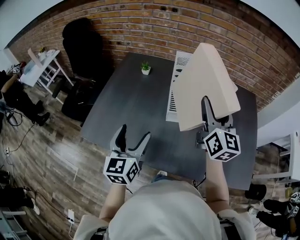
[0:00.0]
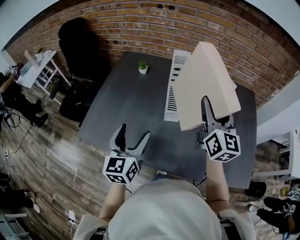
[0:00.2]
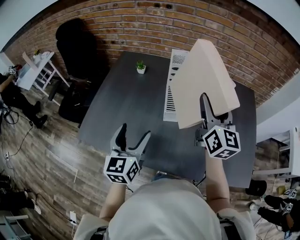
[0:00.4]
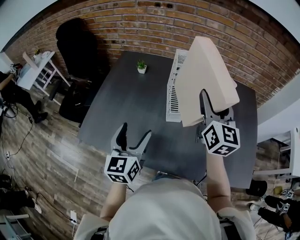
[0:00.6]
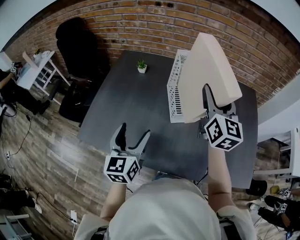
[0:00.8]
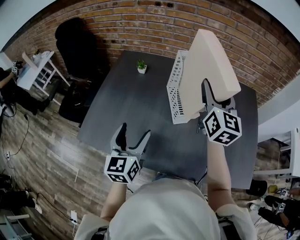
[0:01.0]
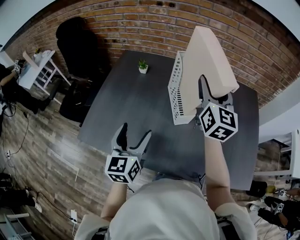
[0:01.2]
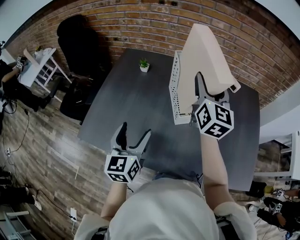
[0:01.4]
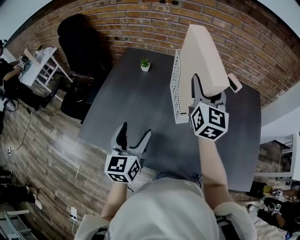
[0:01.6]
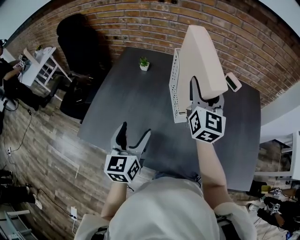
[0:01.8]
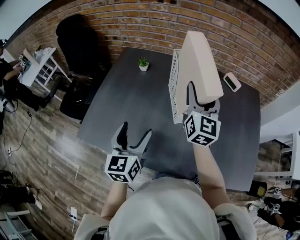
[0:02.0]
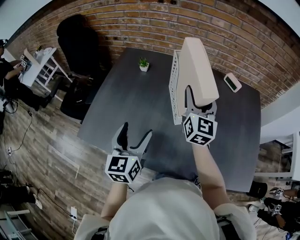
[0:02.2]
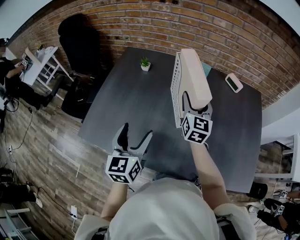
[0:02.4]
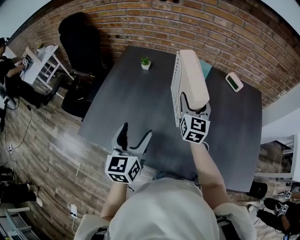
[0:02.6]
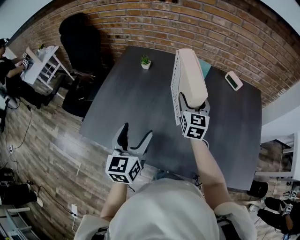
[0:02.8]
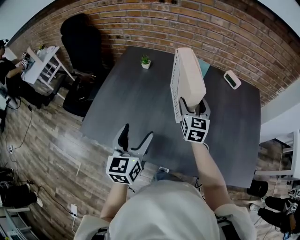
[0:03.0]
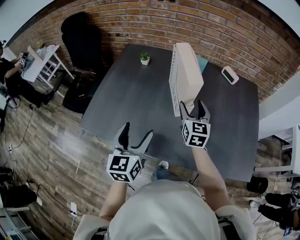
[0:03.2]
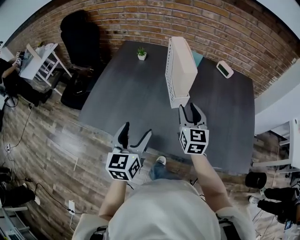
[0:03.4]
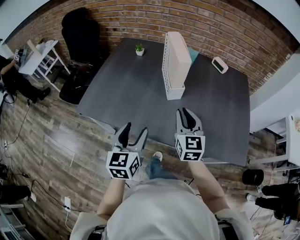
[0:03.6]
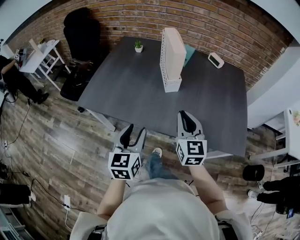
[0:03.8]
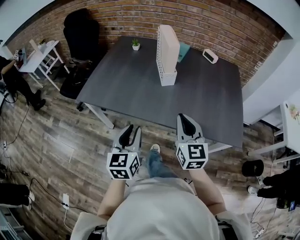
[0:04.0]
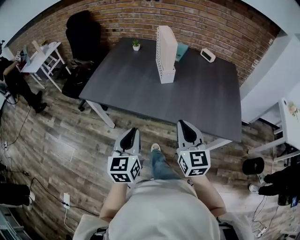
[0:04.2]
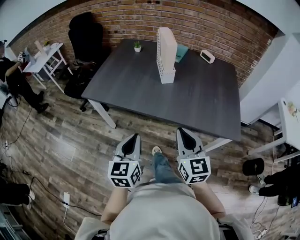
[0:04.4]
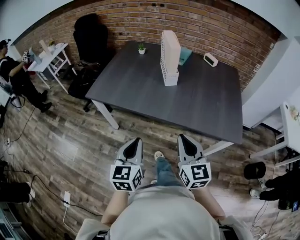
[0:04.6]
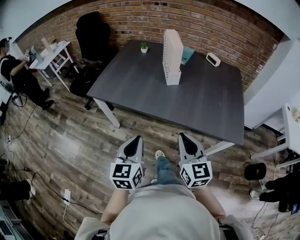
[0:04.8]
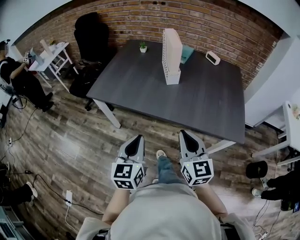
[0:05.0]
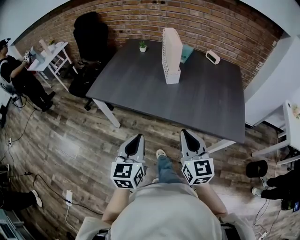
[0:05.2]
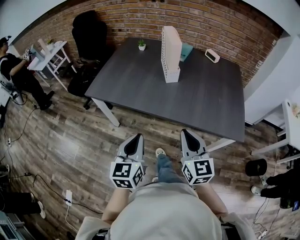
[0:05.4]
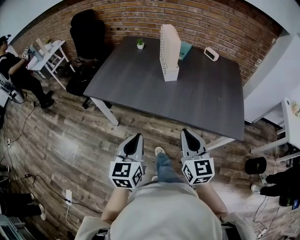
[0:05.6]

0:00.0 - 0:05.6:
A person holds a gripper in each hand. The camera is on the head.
0:00.0 - 0:01.4: The right gripper is displaced forward by roughly 10 cm.
0:01.4 - 0:02.8: The right gripper travels downward by some 15 cm.
0:02.8 - 0:04.2: The grippers both shift backward by about 40 cm. The left gripper closes up. The right gripper closes up.

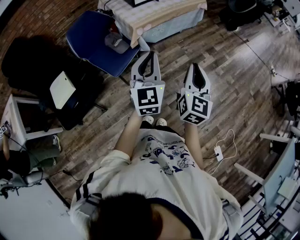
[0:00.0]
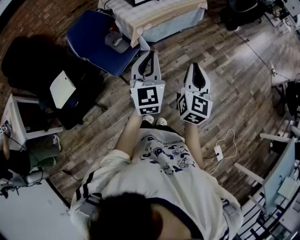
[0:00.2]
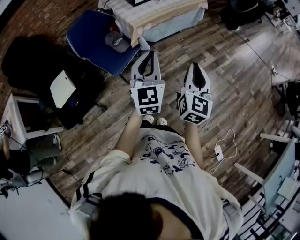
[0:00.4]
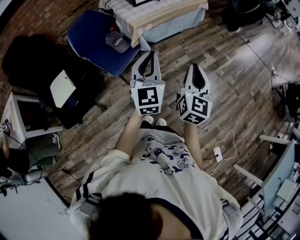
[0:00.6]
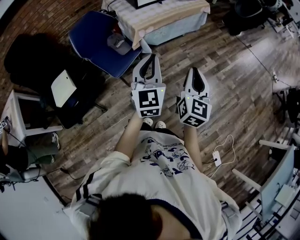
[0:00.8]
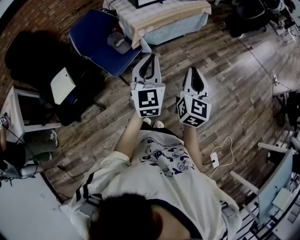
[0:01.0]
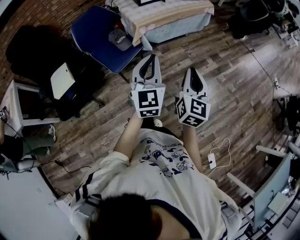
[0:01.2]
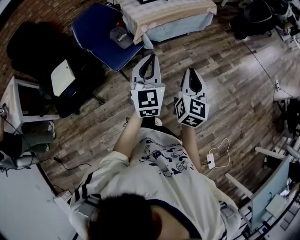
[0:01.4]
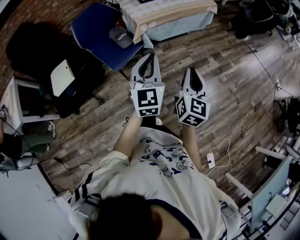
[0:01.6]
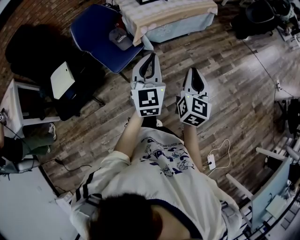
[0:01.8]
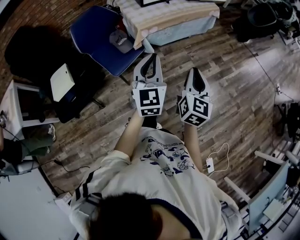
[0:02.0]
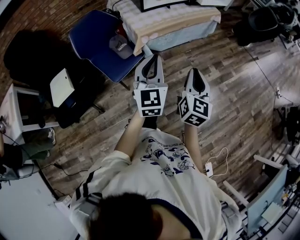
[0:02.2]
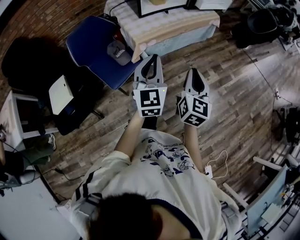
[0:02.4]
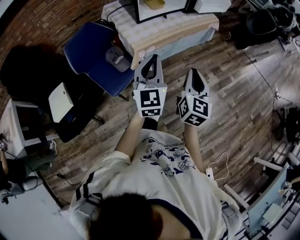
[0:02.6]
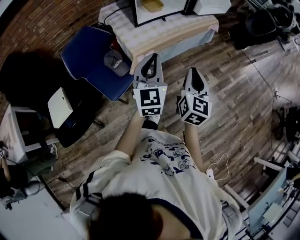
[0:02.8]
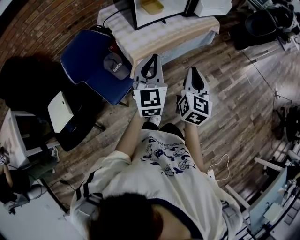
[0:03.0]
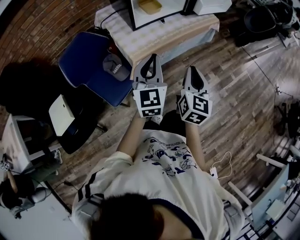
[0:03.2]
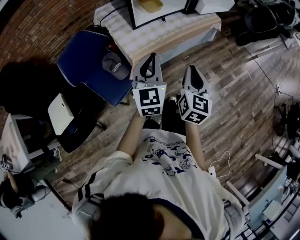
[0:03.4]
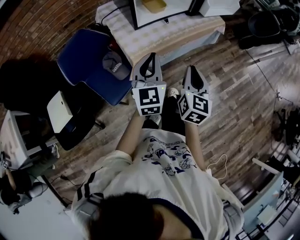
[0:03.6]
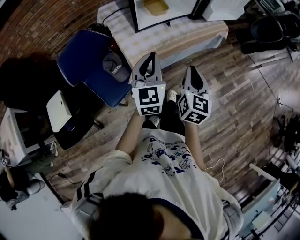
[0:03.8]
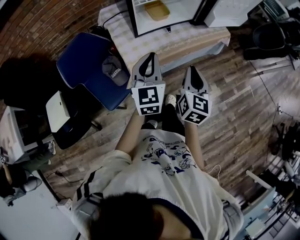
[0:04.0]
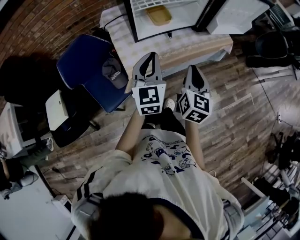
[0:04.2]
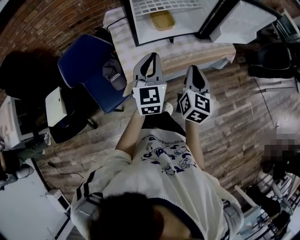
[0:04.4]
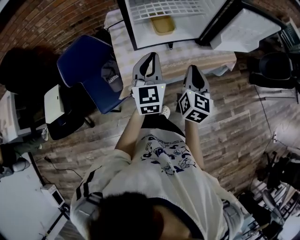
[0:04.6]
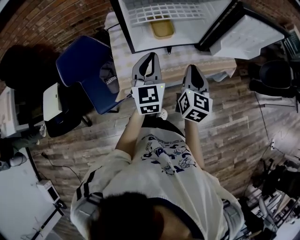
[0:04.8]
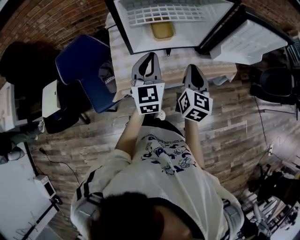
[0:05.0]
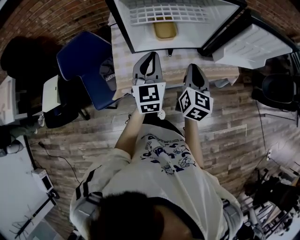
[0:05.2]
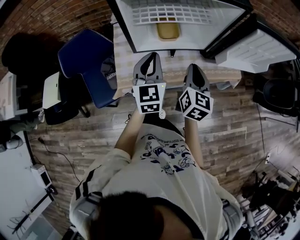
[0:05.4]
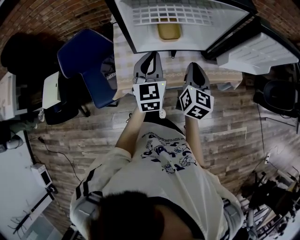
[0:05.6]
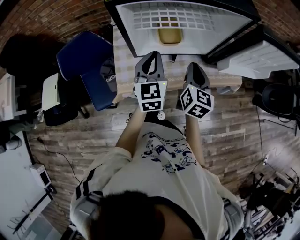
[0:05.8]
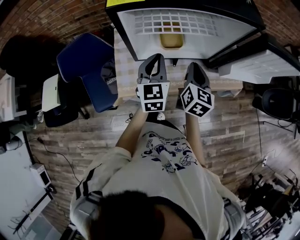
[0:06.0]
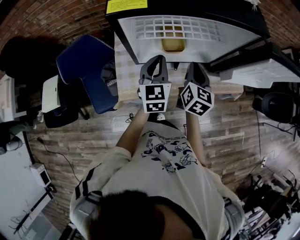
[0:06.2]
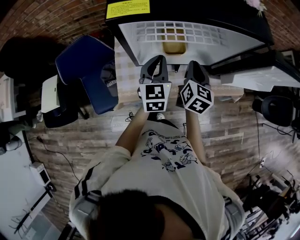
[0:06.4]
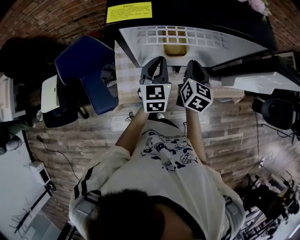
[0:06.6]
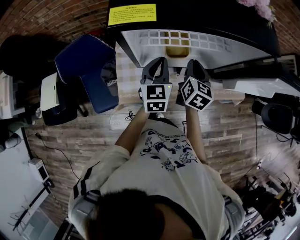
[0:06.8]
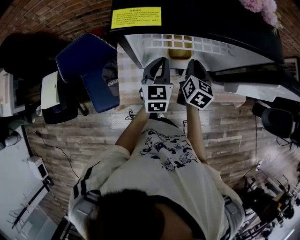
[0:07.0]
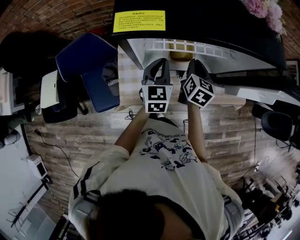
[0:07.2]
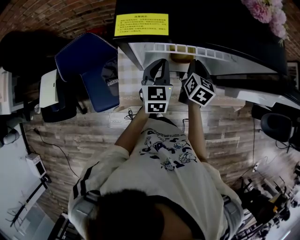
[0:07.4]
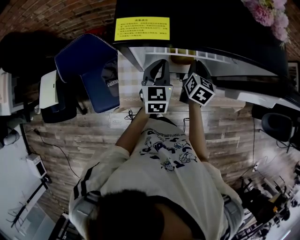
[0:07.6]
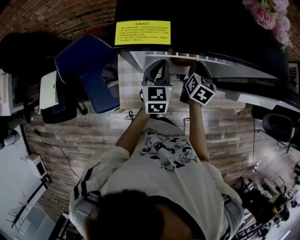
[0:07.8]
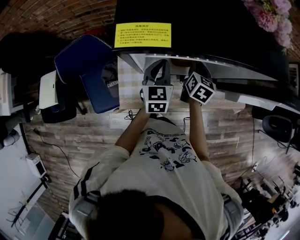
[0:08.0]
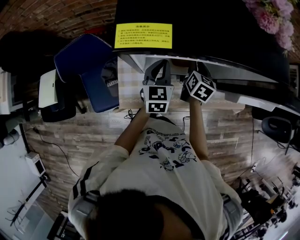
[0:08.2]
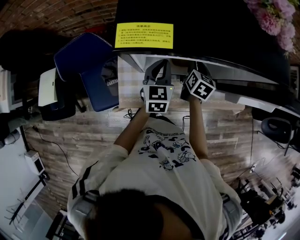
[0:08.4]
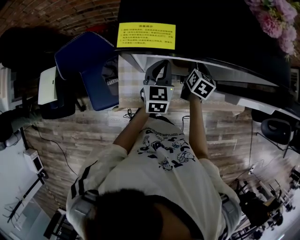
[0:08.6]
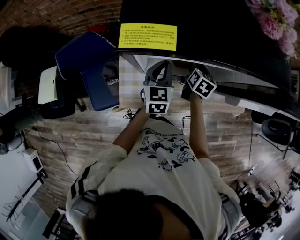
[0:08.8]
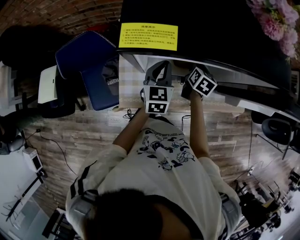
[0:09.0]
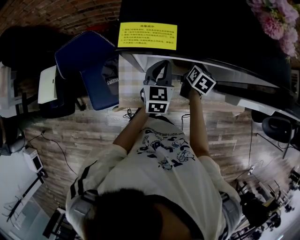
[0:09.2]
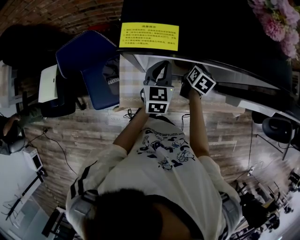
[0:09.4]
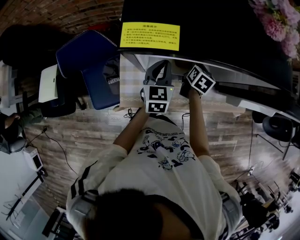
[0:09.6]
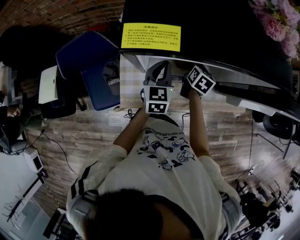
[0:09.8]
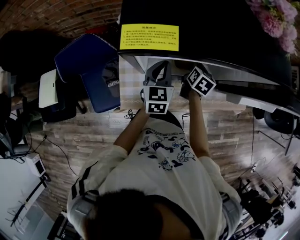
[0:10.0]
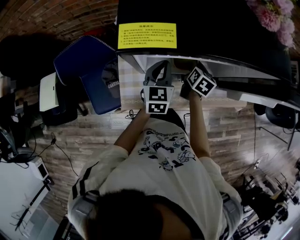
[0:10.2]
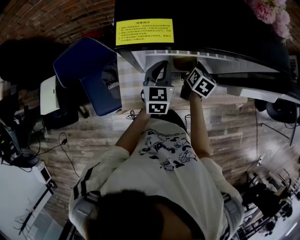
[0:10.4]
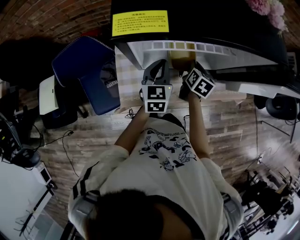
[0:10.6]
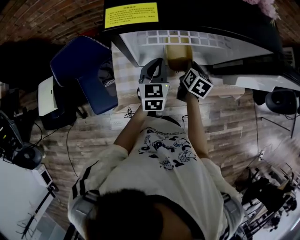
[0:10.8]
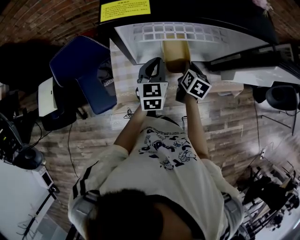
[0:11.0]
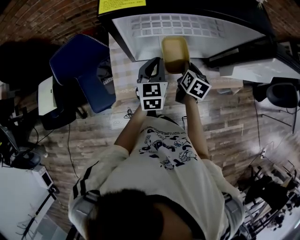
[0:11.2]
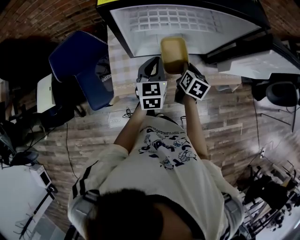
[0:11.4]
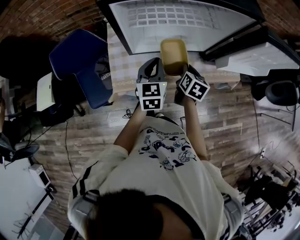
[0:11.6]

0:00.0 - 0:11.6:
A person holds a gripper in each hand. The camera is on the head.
0:00.0 - 0:01.4: The grippers make only small movements.
0:01.4 - 0:02.8: Both grippers move forward, about 25 cm.
0:02.8 - 0:04.4: The grippers both shift forward by about 25 cm.
0:04.4 - 0:05.8: The grippers both shift forward by approximately 15 cm.
0:05.8 - 0:07.2: Both grippers move forward and downward, about 15 cm.
0:07.2 - 0:08.8: The right gripper goes about 10 cm downward and forward.
0:08.8 - 0:10.2: The grippers stay close to where they were, moving slightly.
0:10.2 - 0:11.6: The left gripper moves backward and to the right, some 10 cm; the right gripper is displaced backward by some 15 cm.

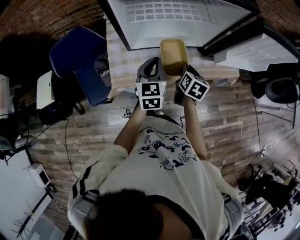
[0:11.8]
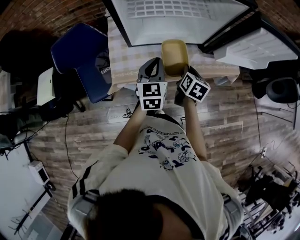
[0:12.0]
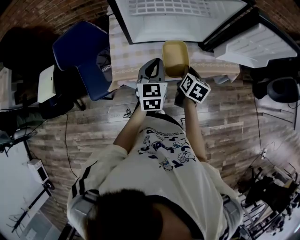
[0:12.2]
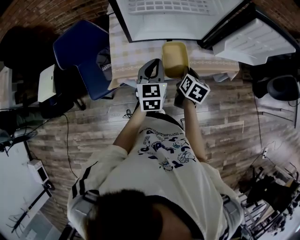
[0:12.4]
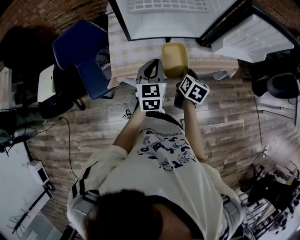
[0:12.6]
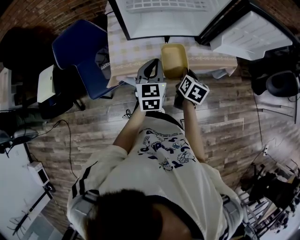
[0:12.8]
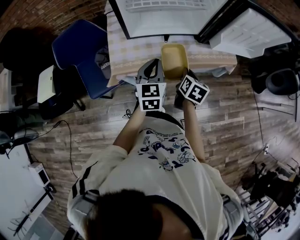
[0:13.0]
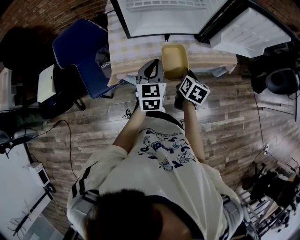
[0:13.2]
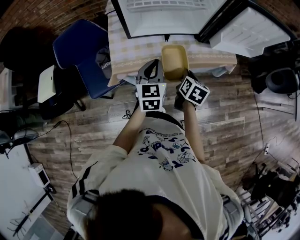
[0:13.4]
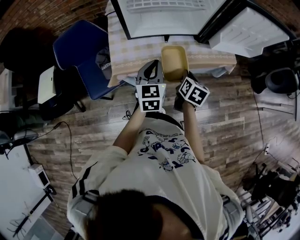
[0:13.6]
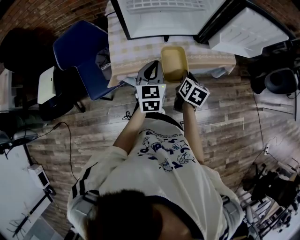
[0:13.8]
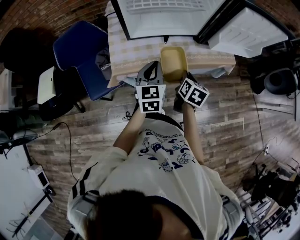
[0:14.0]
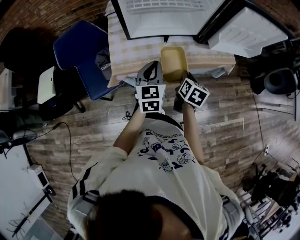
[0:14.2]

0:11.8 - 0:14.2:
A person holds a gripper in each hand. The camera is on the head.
0:11.8 - 0:13.0: Both grippers travel together backward, roughly 10 cm.
0:13.0 - 0:14.2: The grippers move only a little.

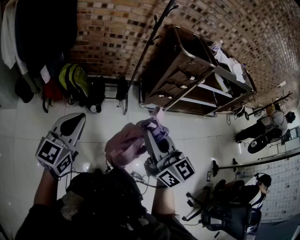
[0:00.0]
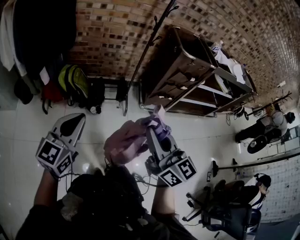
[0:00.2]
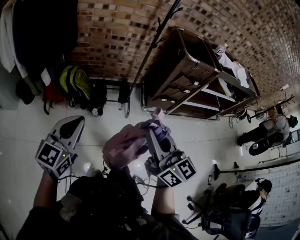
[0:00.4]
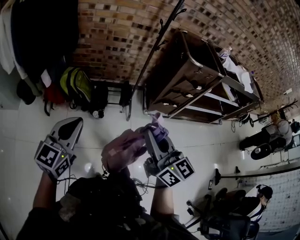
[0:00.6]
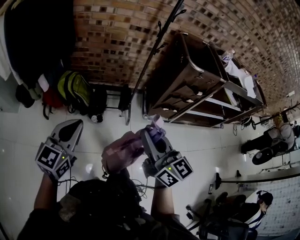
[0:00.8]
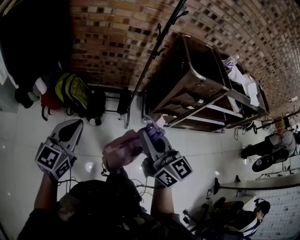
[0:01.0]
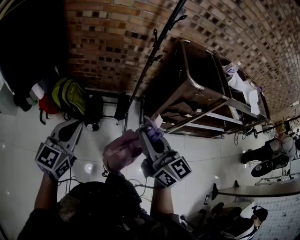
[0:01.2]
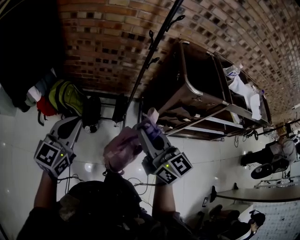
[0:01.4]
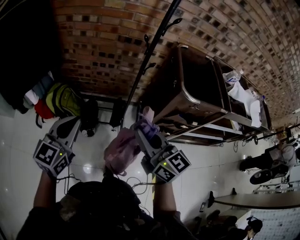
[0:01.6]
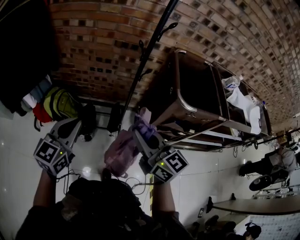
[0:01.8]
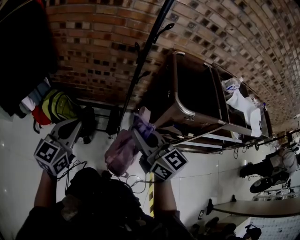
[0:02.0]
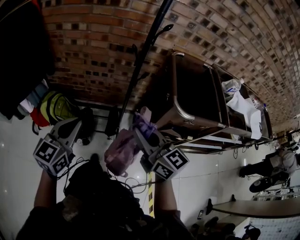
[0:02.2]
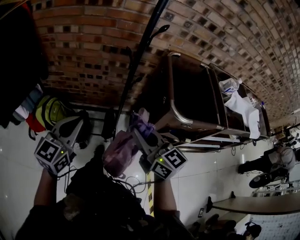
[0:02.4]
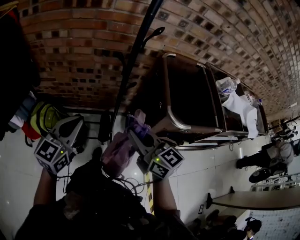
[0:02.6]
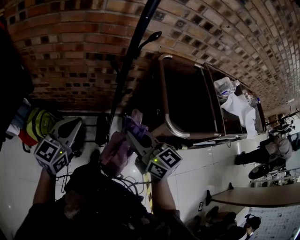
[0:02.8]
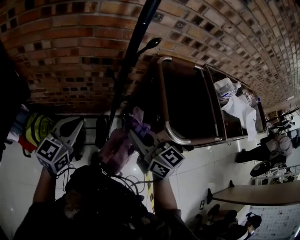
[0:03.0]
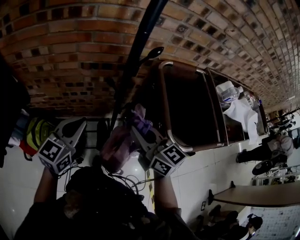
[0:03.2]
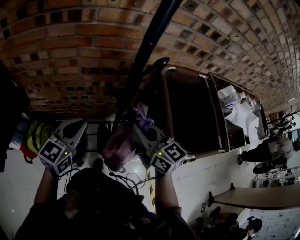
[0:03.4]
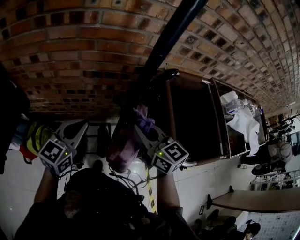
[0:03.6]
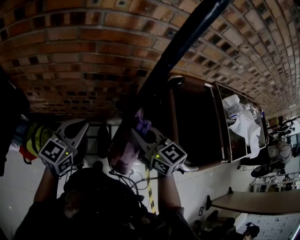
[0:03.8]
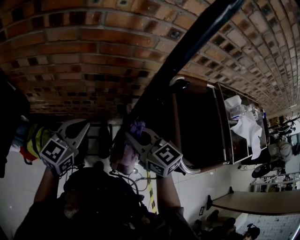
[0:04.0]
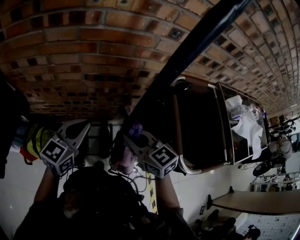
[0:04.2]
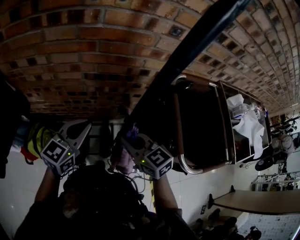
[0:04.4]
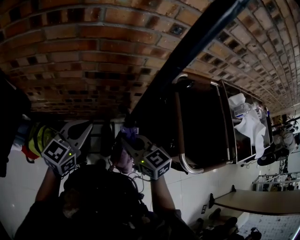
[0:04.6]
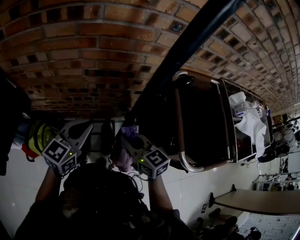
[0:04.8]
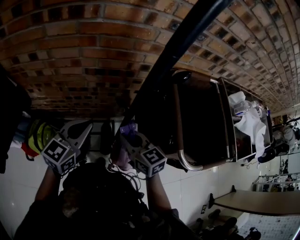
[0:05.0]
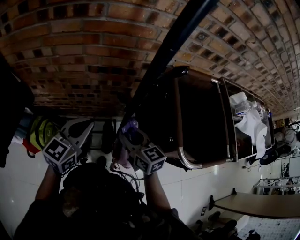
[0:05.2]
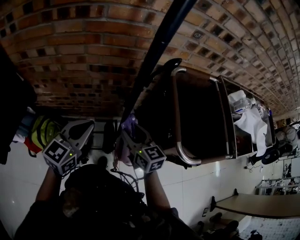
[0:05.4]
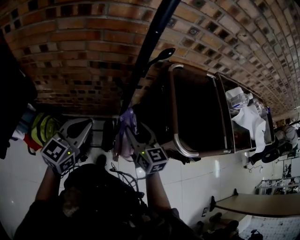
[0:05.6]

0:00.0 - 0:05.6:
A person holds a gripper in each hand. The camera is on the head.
0:00.0 - 0:01.4: The right gripper goes some 35 cm forward, while the left gripper travels forward and to the right by approximately 35 cm.
0:01.4 - 0:02.8: The left gripper moves forward and to the right, roughly 30 cm, while the right gripper travels forward by approximately 25 cm.
0:02.8 - 0:04.2: The grippers both shift forward by approximately 20 cm.
0:04.2 - 0:05.6: The right gripper shifts about 10 cm to the right and backward, changes its angle by roughly 20 degrees, and opens up. The left gripper shifts some 10 cm backward.
